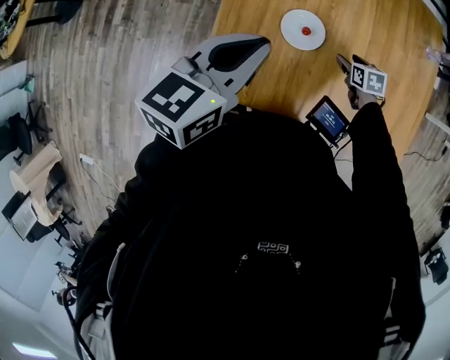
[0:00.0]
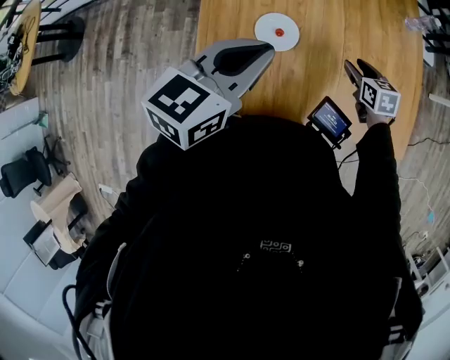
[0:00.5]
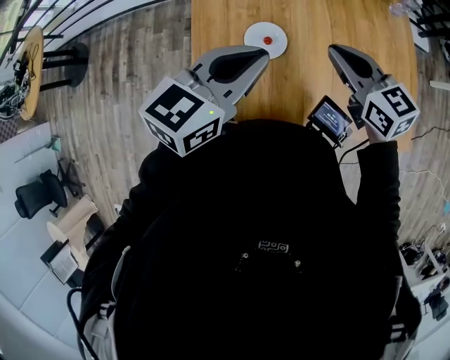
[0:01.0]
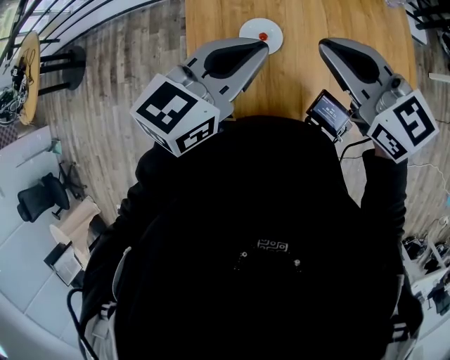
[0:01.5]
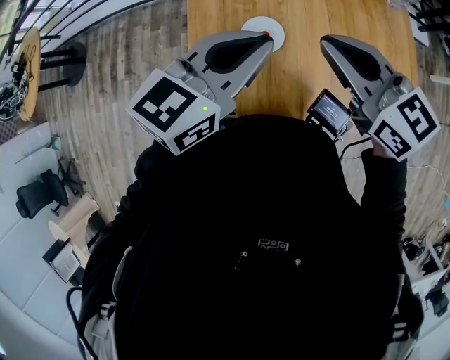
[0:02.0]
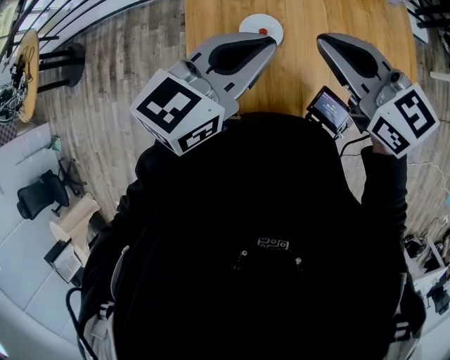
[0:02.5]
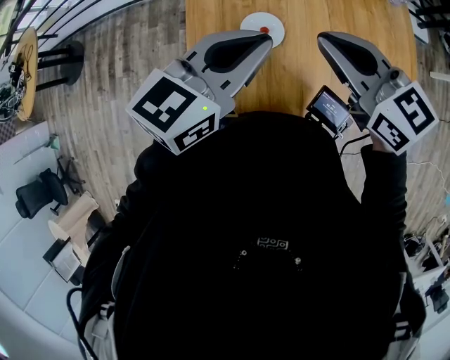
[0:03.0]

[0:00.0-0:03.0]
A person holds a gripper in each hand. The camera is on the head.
0:00.0 to 0:01.5: The left gripper goes some 5 cm to the right, and turns by about 20 degrees. The right gripper shifts roughly 35 cm upward, points its fingers some 50 degrees further upward, and closes.
0:01.5 to 0:03.0: The grippers stay close to where they were, moving slightly.

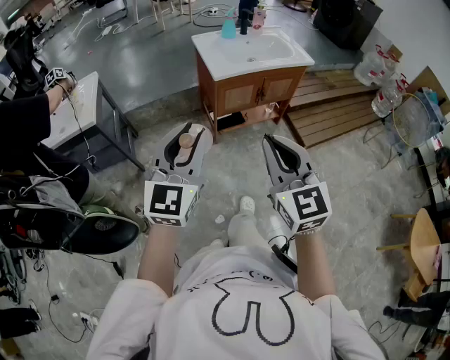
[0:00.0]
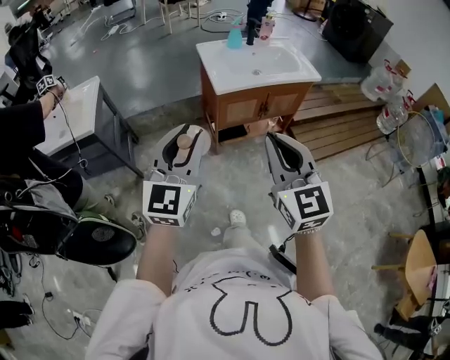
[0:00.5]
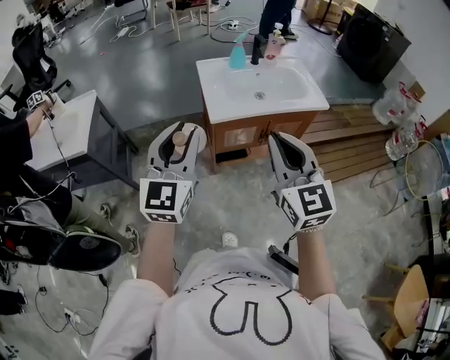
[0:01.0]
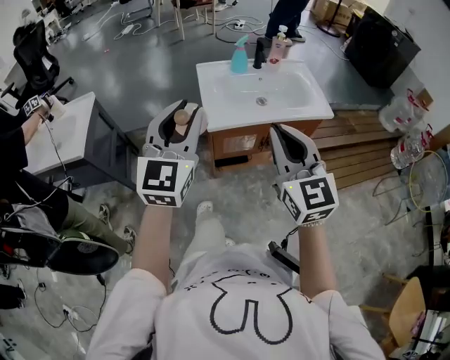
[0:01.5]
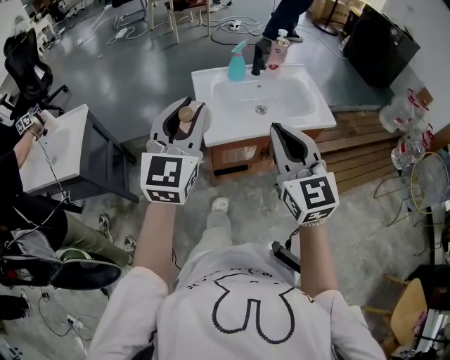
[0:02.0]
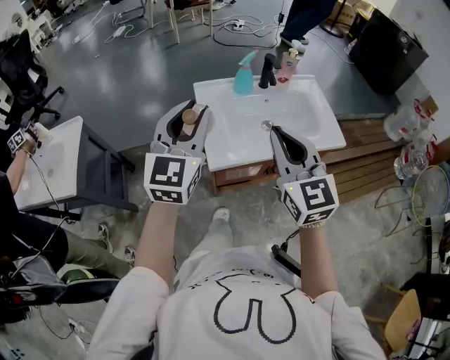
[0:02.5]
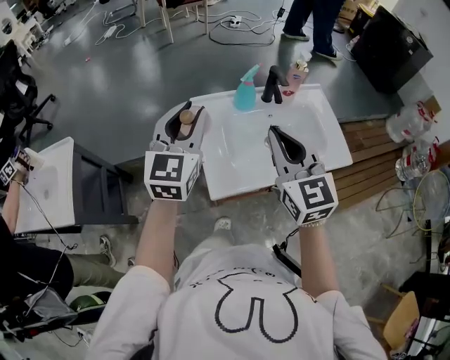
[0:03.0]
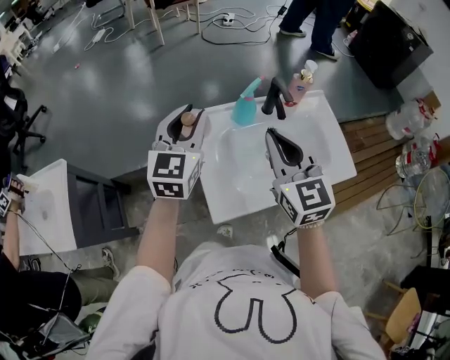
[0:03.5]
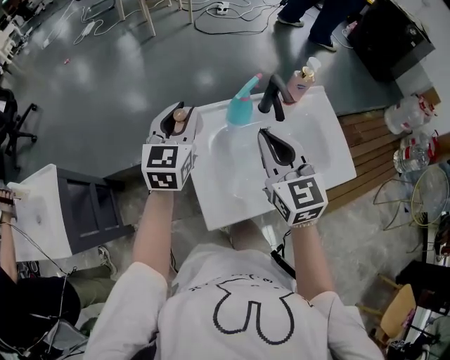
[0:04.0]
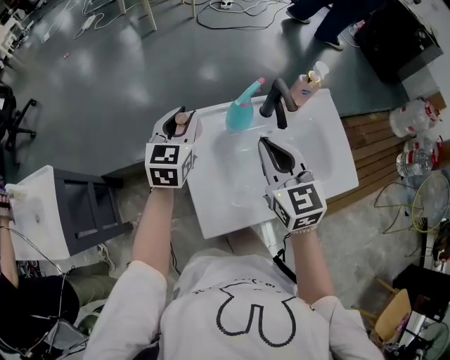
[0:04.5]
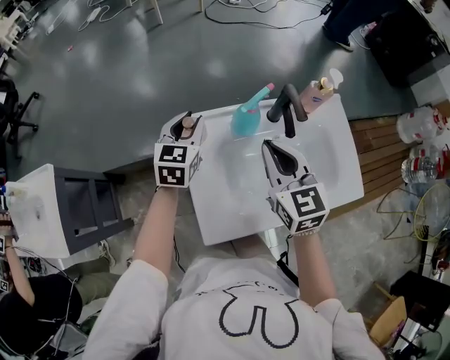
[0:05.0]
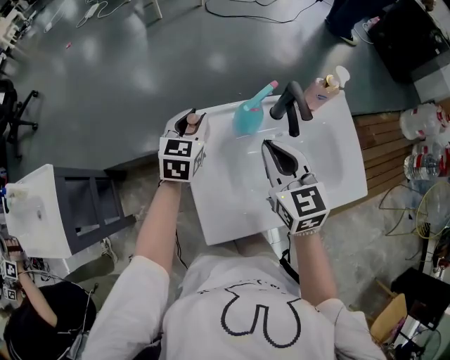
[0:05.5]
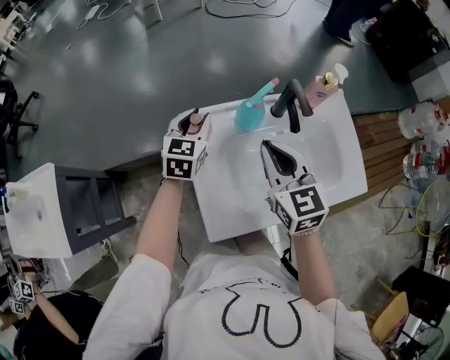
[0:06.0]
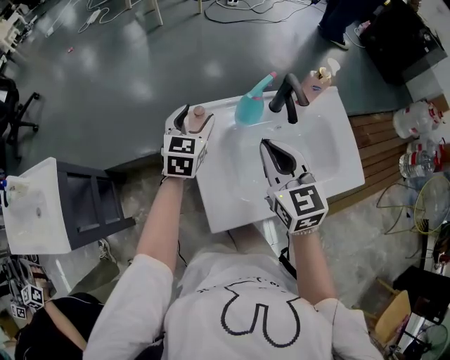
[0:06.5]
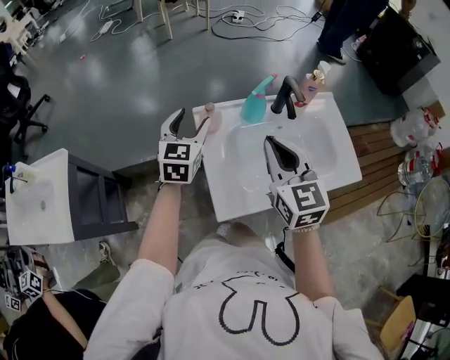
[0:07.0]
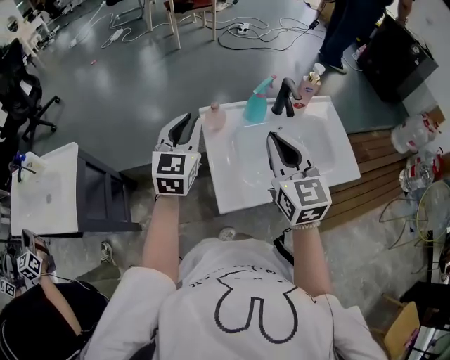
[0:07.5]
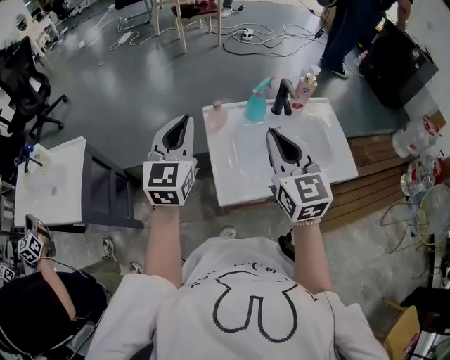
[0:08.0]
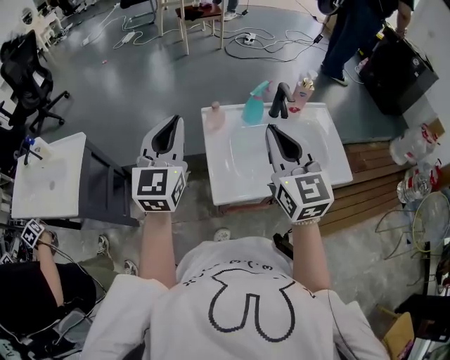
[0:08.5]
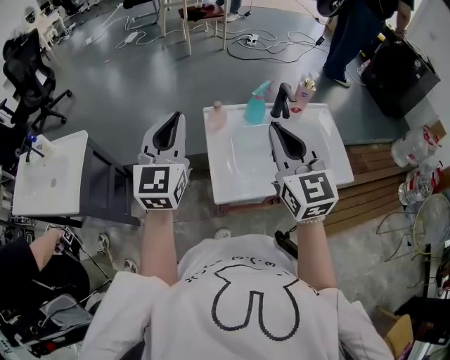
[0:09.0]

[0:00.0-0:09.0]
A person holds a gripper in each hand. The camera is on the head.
0:00.0 to 0:02.0: The two grippers go approximately 35 cm forward.
0:02.0 to 0:04.5: The right gripper heads forward, covering roughly 35 cm; the left gripper is displaced forward and downward by approximately 50 cm, and changes its angle by about 30 degrees.
0:04.5 to 0:07.0: The two grippers go roughly 5 cm backward. The left gripper opens its fingers.
0:07.0 to 0:09.0: The left gripper travels upward and backward by some 25 cm, swivels approximately 20 degrees, and closes its fingers; the right gripper shifts some 15 cm upward and backward.

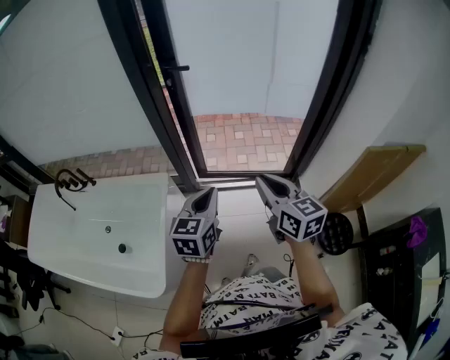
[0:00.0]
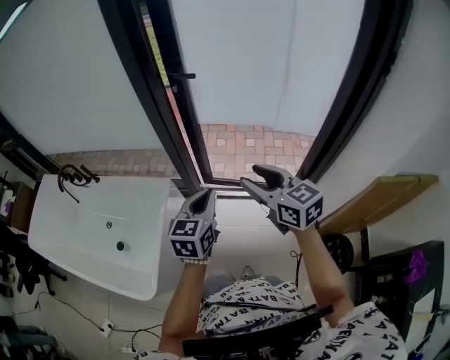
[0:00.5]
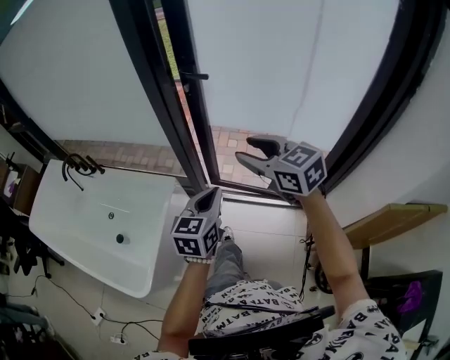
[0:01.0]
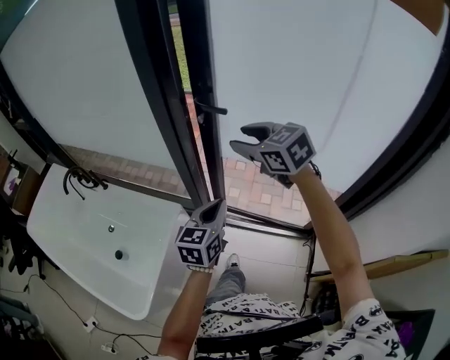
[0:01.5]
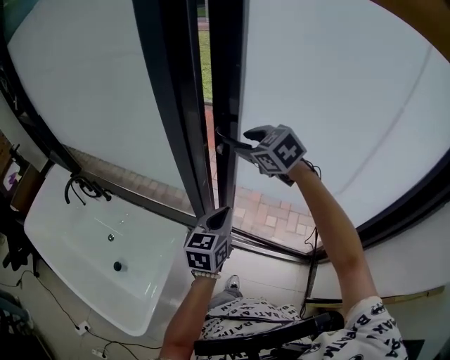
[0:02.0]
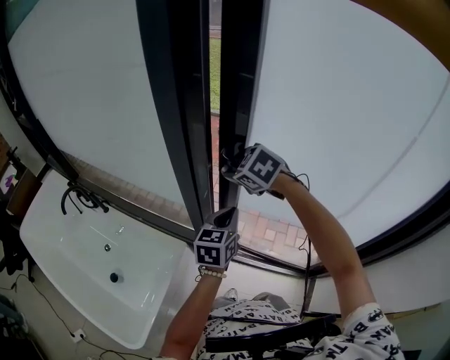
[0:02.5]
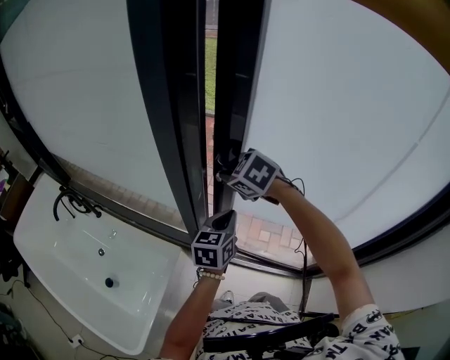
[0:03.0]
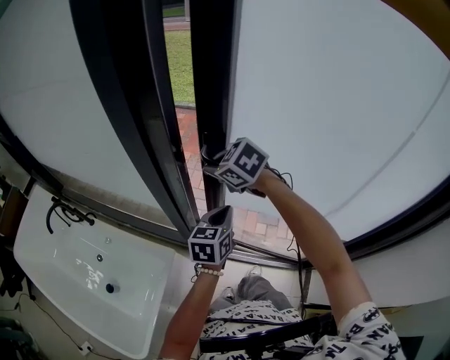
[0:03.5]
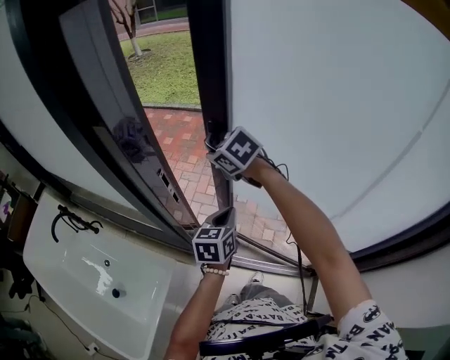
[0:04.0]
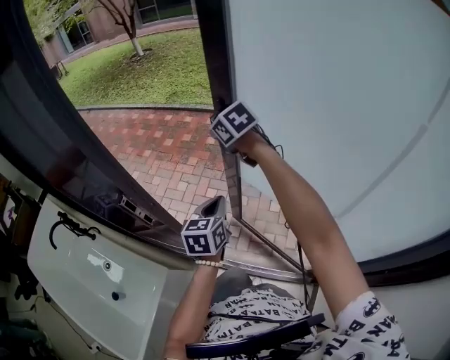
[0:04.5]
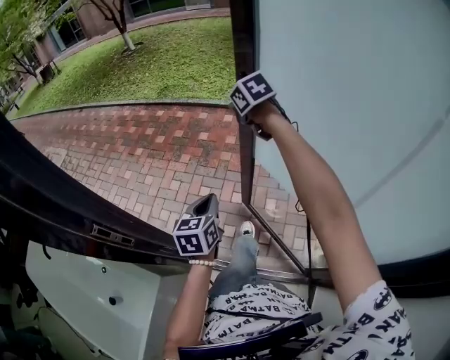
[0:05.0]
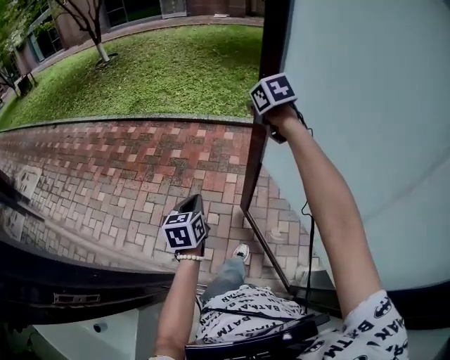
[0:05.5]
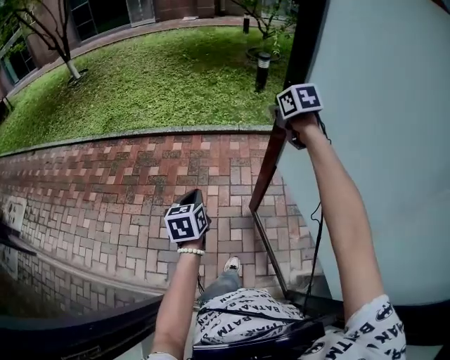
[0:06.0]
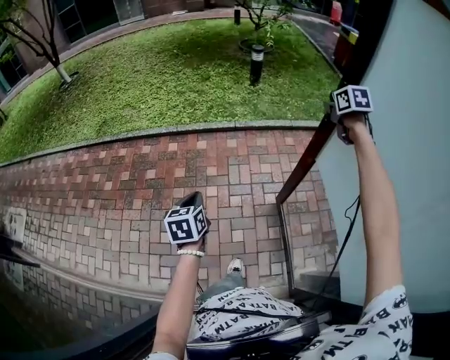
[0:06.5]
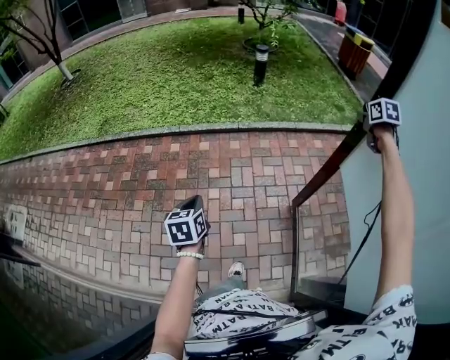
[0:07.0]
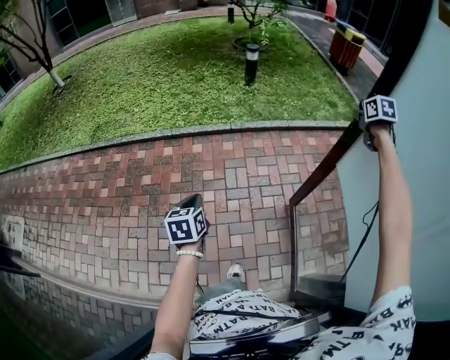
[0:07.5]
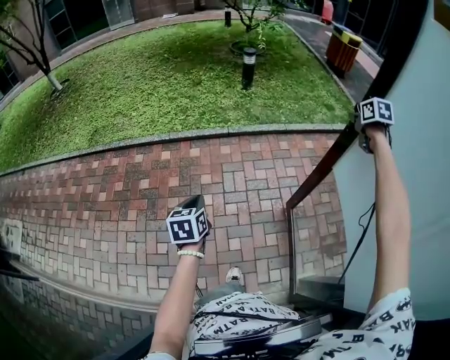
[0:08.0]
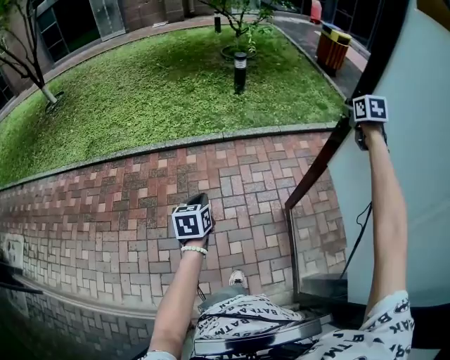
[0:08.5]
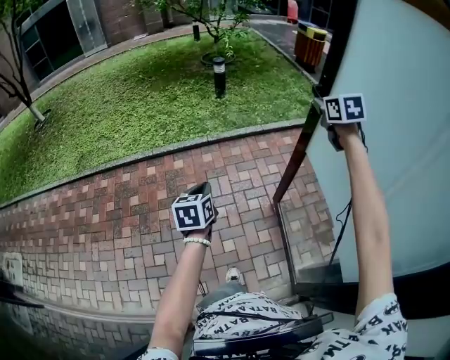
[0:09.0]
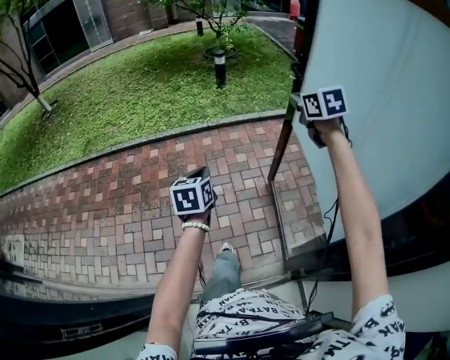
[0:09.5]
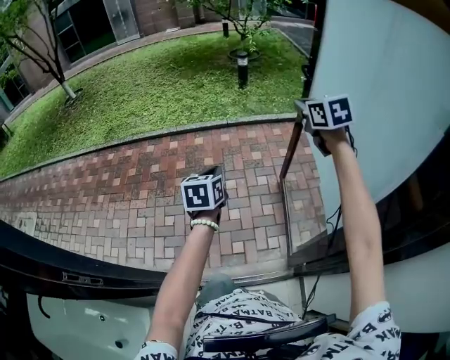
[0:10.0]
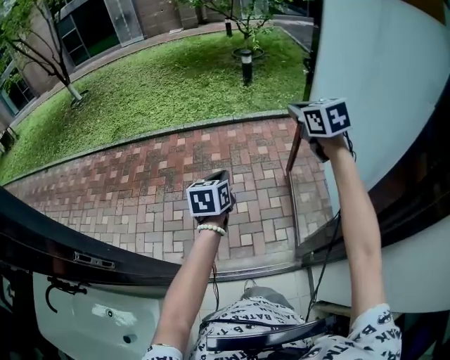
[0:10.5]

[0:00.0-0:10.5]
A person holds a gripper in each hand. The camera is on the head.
0:00.0 to 0:02.0: The right gripper shifts some 50 cm forward, turns by about 50 degrees, and opens; the left gripper goes about 30 cm forward.
0:02.0 to 0:04.0: The right gripper travels forward by roughly 15 cm, and closes its fingers; the left gripper moves forward and to the right, roughly 20 cm.
0:04.0 to 0:06.5: Both grippers are carried approximately 70 cm. The right gripper turns by some 70 degrees.
0:06.5 to 0:08.5: The right gripper moves to the right, about 15 cm, and opens its fingers. The left gripper goes approximately 10 cm forward.
0:08.5 to 0:10.5: The left gripper goes about 35 cm backward, while the right gripper moves backward and to the left, roughly 50 cm, swivels roughly 30 degrees, and closes its fingers.

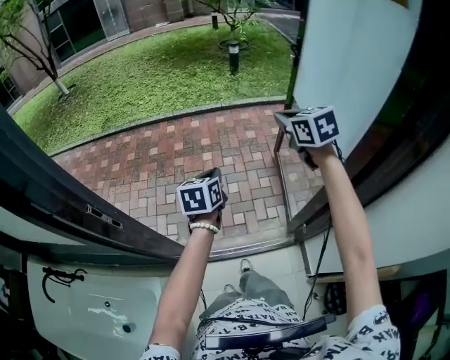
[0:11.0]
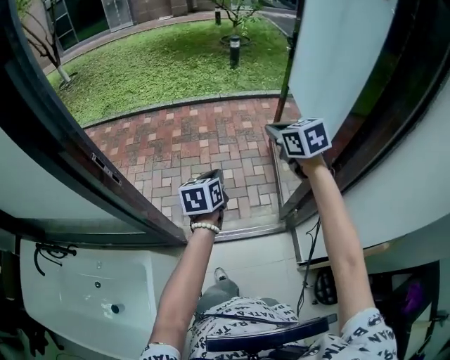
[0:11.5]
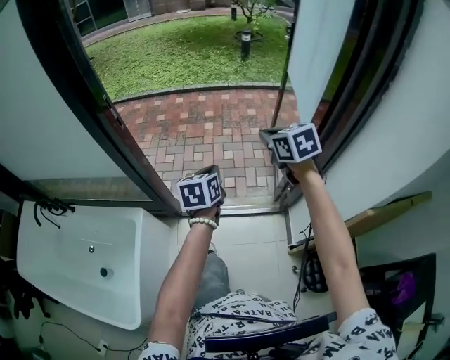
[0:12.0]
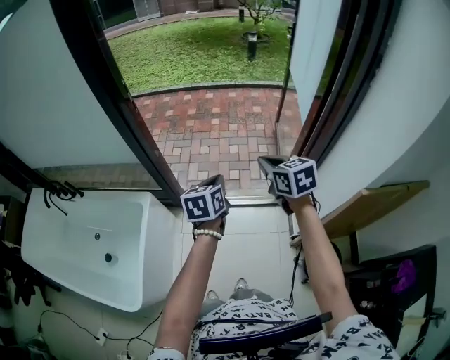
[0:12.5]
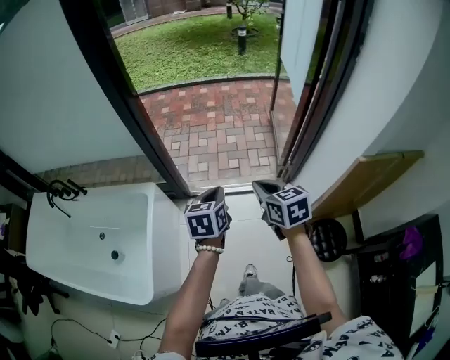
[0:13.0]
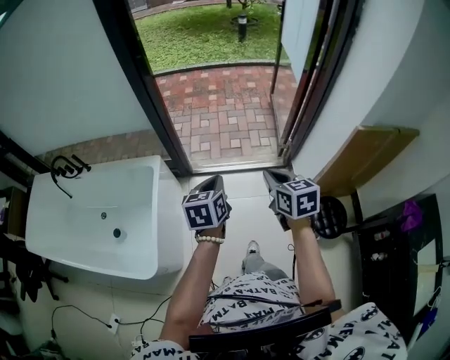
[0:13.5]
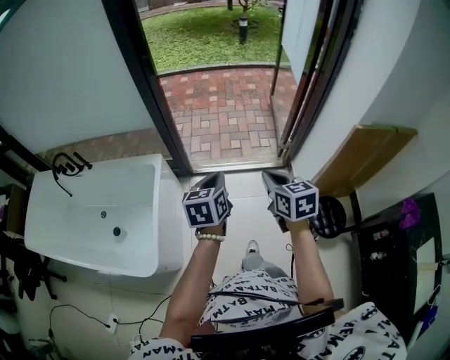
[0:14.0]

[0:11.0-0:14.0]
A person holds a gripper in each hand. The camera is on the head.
0:11.0 to 0:12.5: Both grippers move backward, some 40 cm.
0:12.5 to 0:14.0: Both grippers move backward, about 25 cm.

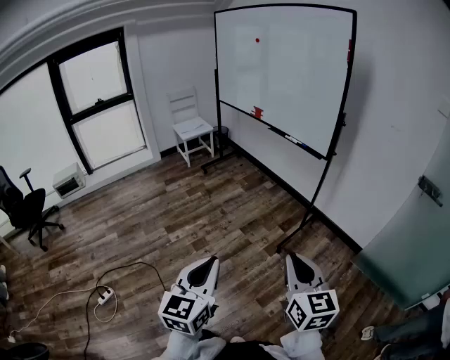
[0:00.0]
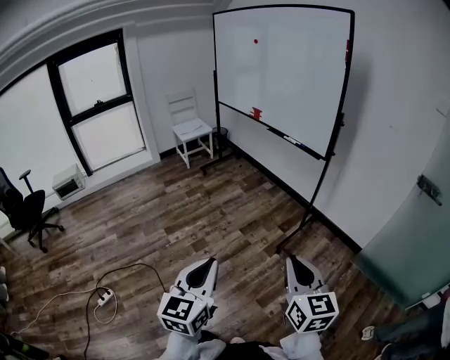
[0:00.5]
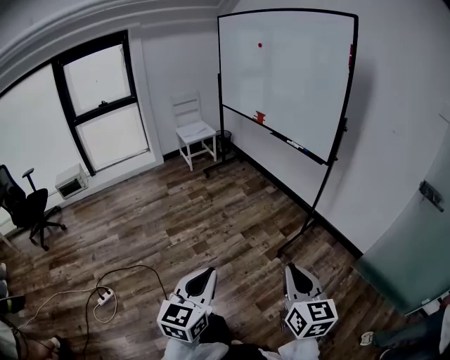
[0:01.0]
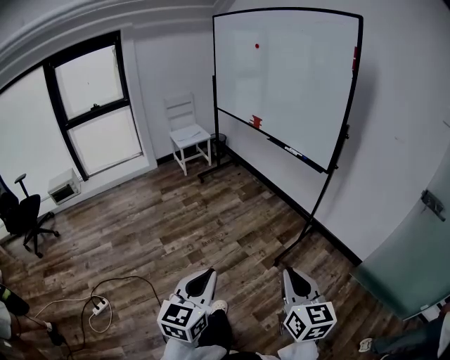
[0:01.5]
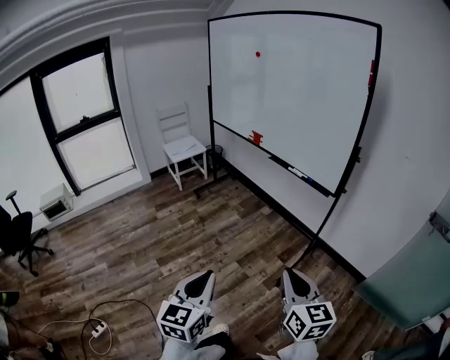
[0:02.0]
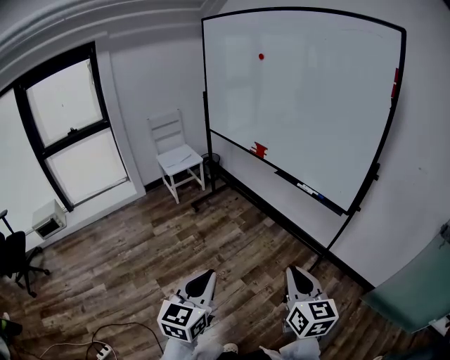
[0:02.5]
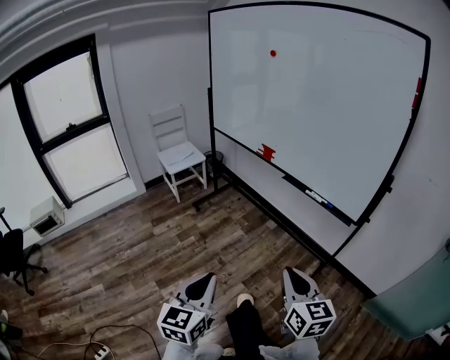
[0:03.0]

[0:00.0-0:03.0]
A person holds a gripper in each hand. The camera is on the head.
0:00.0 to 0:01.5: The grippers both shift forward by about 5 cm.
0:01.5 to 0:03.0: The grippers both shift forward by some 40 cm.
